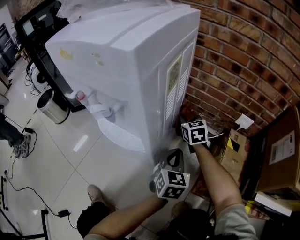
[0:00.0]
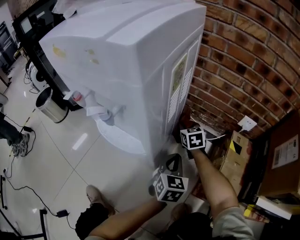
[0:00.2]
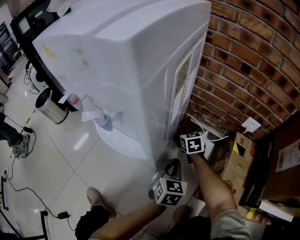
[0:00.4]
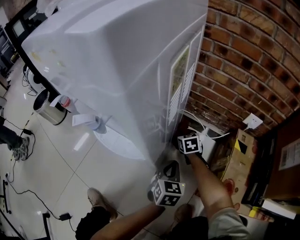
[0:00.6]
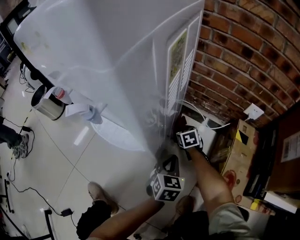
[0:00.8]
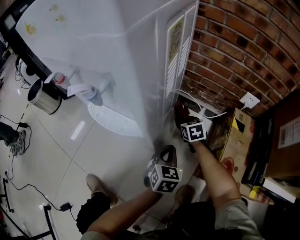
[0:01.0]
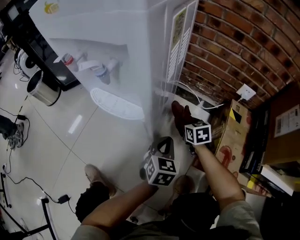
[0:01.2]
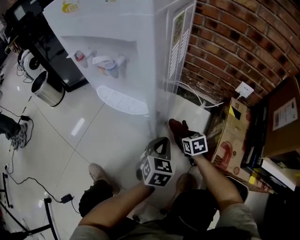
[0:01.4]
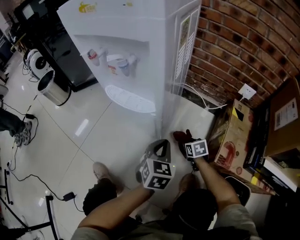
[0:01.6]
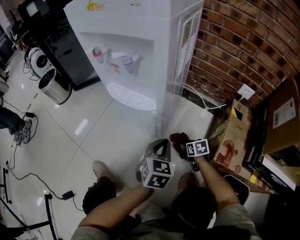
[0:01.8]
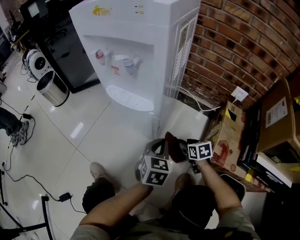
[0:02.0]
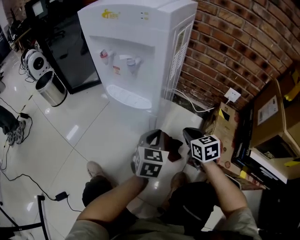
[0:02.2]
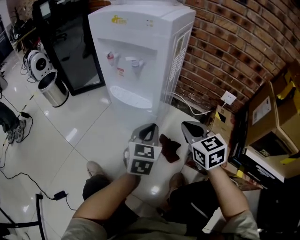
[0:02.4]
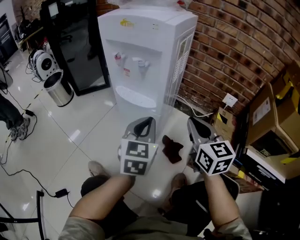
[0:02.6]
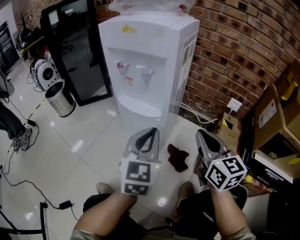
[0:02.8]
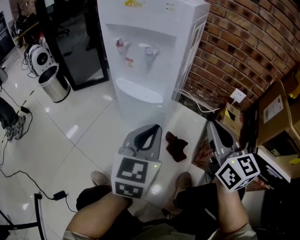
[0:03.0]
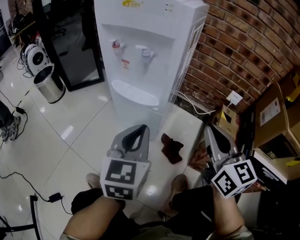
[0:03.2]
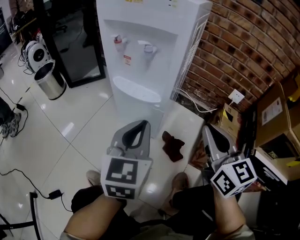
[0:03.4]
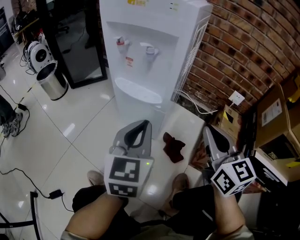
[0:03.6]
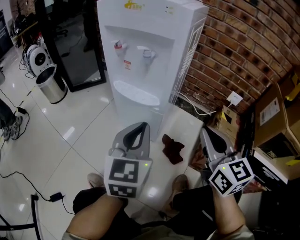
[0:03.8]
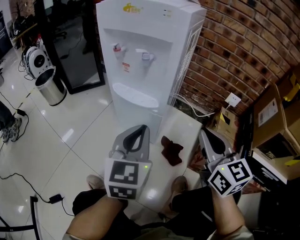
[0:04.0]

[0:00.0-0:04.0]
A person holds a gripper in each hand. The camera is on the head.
0.0 to 1.4 s: The left gripper goes about 10 cm backward, to the left and downward, while the right gripper shifts some 25 cm backward and downward, and turns by about 20 degrees.
1.4 to 2.6 s: The left gripper goes roughly 20 cm upward and to the left, and changes its angle by some 20 degrees, while the right gripper heads upward, covering some 35 cm, tilts its fingers roughly 40 degrees upward, and opens, then closes once more.
2.6 to 4.0 s: The grippers stay close to where they were, moving slightly.

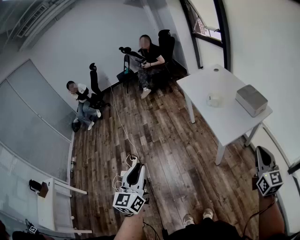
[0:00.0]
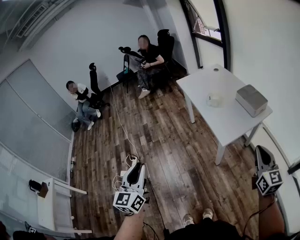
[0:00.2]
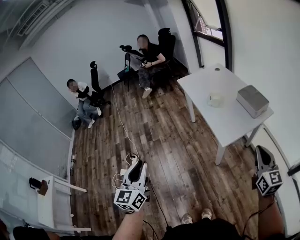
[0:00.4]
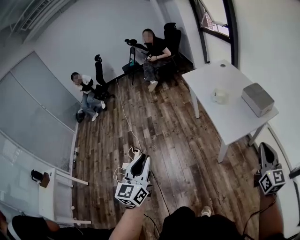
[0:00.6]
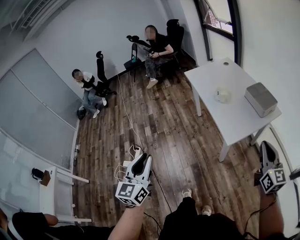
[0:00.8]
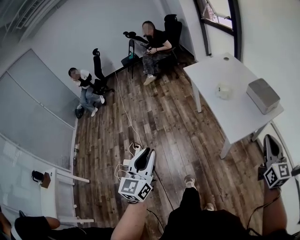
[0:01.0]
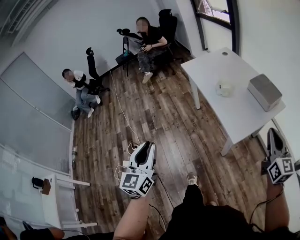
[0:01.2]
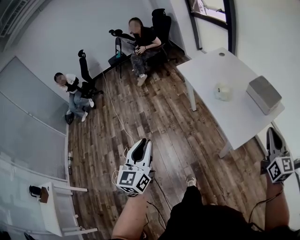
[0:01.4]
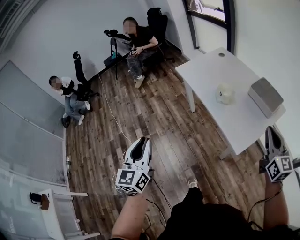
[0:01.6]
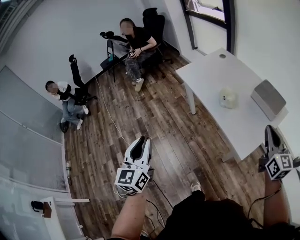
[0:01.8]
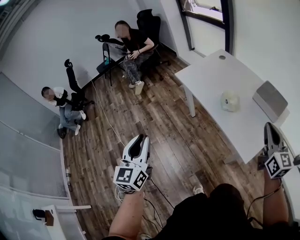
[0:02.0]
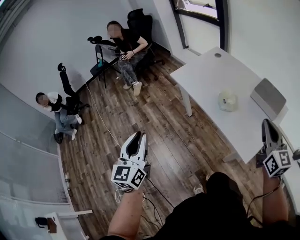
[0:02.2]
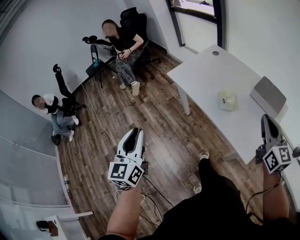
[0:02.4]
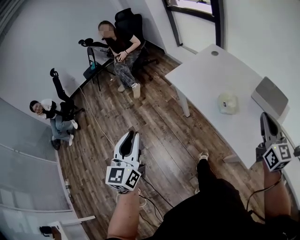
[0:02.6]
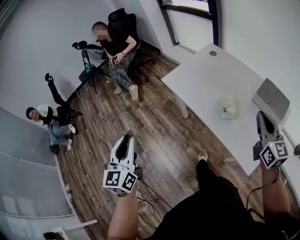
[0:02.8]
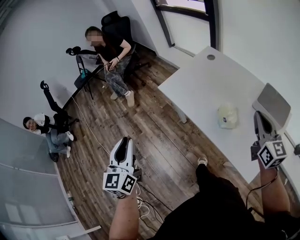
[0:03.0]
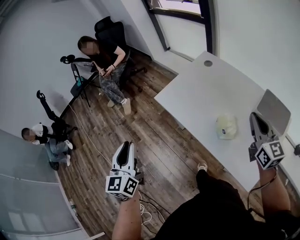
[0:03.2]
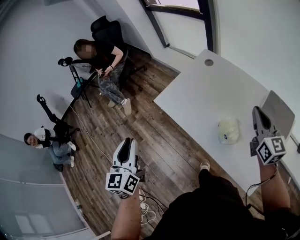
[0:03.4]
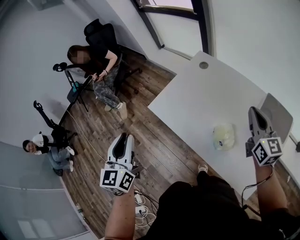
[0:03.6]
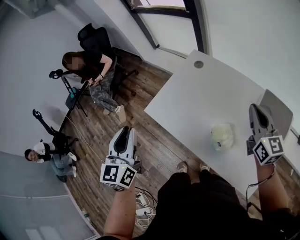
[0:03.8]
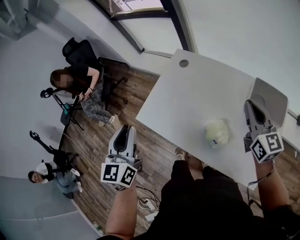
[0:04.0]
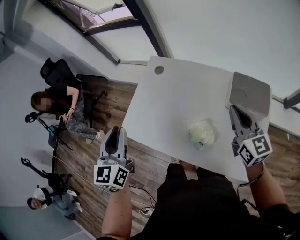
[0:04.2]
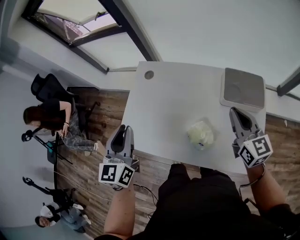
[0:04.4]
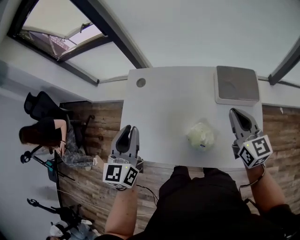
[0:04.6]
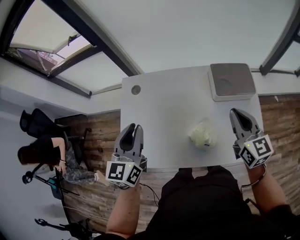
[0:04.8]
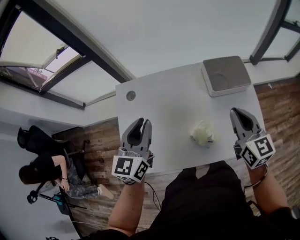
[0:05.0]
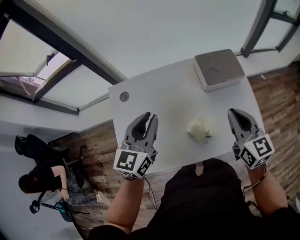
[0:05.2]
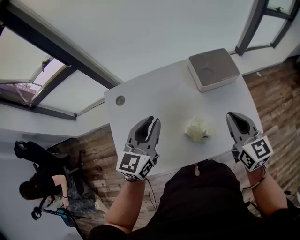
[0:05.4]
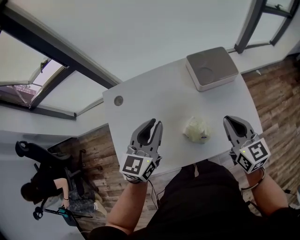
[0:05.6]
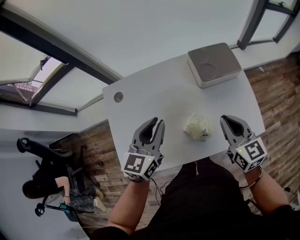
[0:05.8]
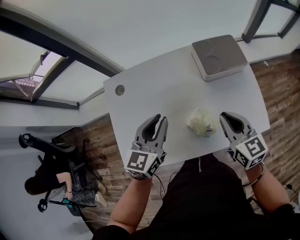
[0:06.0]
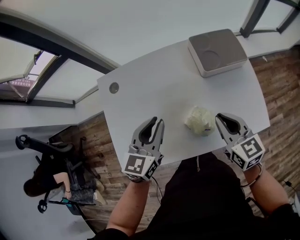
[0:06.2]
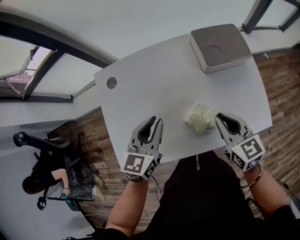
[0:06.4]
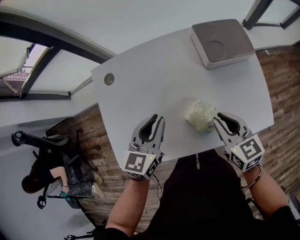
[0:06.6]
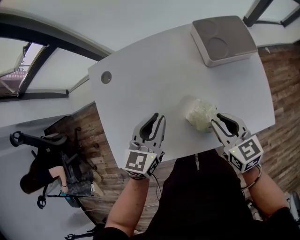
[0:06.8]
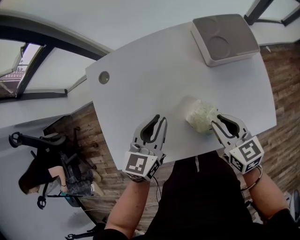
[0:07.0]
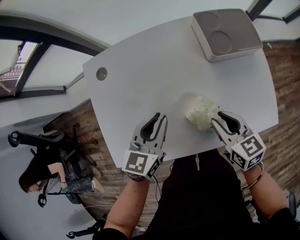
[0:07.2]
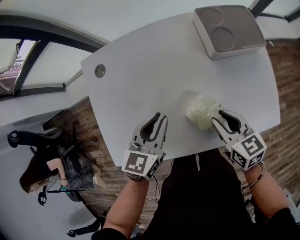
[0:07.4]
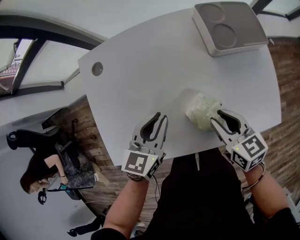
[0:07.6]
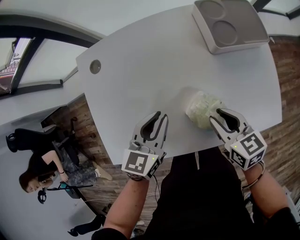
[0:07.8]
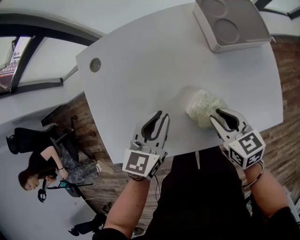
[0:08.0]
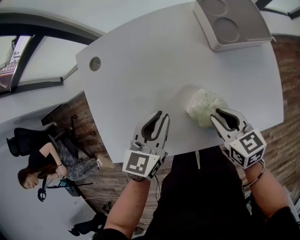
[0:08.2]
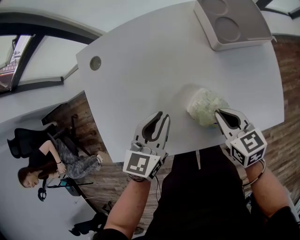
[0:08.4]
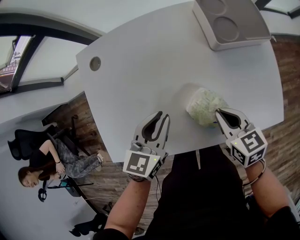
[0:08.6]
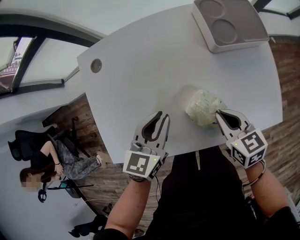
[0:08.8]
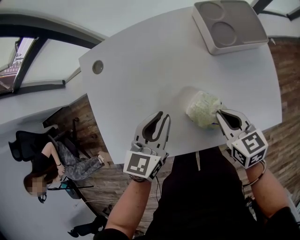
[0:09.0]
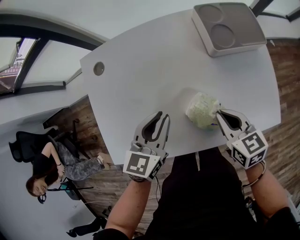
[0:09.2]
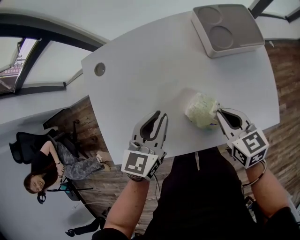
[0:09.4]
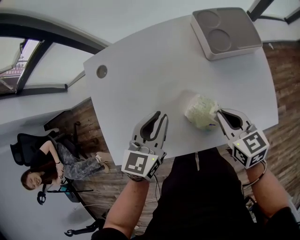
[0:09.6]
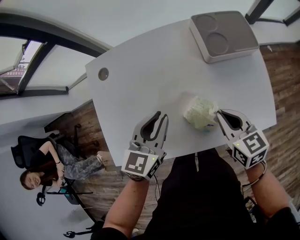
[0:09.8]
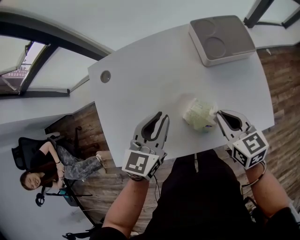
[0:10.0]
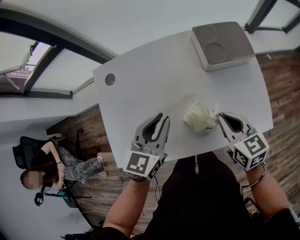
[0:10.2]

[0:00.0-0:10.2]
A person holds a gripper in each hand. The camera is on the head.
0.0 to 1.4 s: Both grippers move forward, some 20 cm.
1.4 to 3.0 s: The two grippers go approximately 35 cm forward.
3.0 to 4.4 s: The right gripper changes place by approximately 15 cm, and changes its angle by some 20 degrees; the left gripper moves approximately 40 cm, and turns by roughly 40 degrees.
4.4 to 5.8 s: The left gripper moves about 15 cm, and turns by some 40 degrees. Meanwhile the right gripper changes place by about 10 cm, and changes its angle by about 20 degrees.
5.8 to 7.2 s: Both grippers travel together downward, approximately 15 cm. The right gripper changes its angle by some 20 degrees, and opens its fingers.
7.2 to 8.8 s: The right gripper closes.
8.8 to 10.2 s: The grippers both shift upward by some 10 cm.

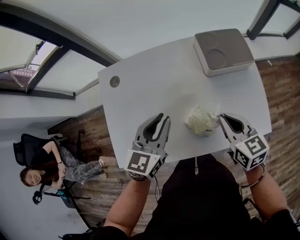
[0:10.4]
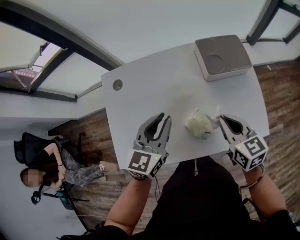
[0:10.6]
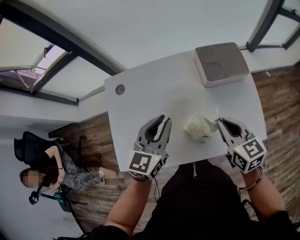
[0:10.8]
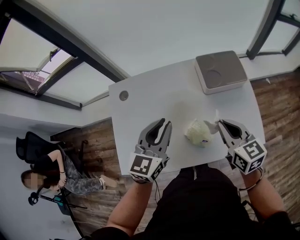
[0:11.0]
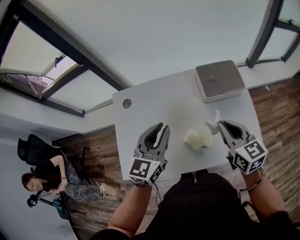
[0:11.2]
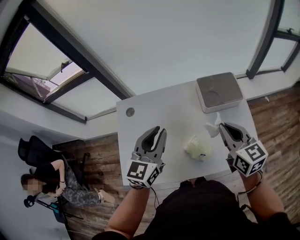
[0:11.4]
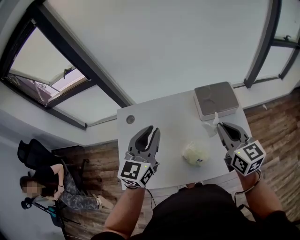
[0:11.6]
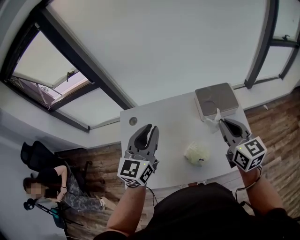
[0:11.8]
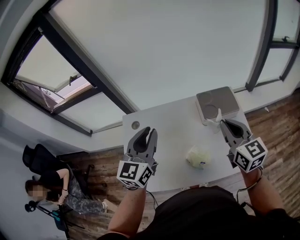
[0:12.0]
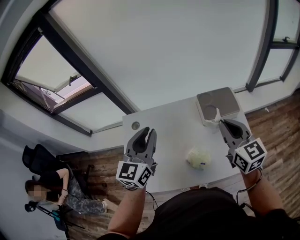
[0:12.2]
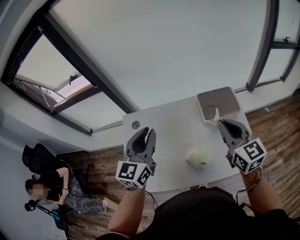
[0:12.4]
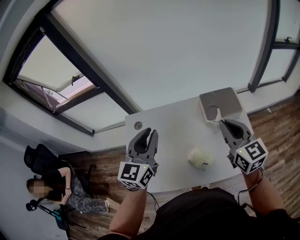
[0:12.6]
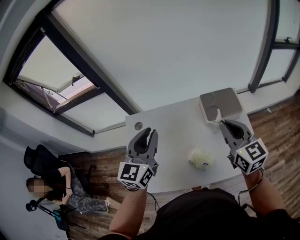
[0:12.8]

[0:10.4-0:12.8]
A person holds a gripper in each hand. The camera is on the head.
10.4 to 11.6 s: Both grippers move upward, approximately 15 cm. The right gripper rotates about 20 degrees.
11.6 to 12.8 s: The grippers make only small movements.

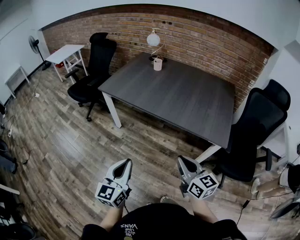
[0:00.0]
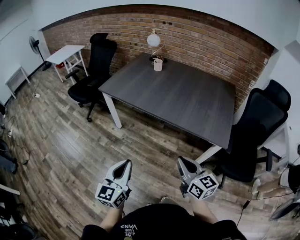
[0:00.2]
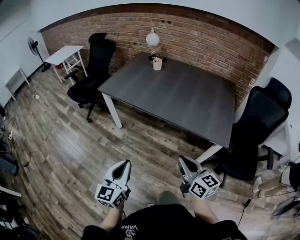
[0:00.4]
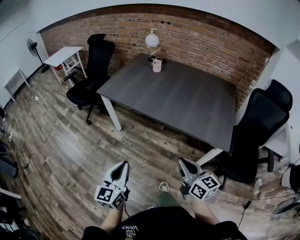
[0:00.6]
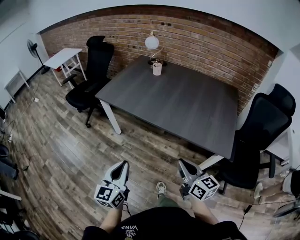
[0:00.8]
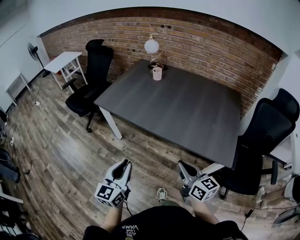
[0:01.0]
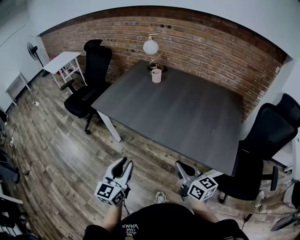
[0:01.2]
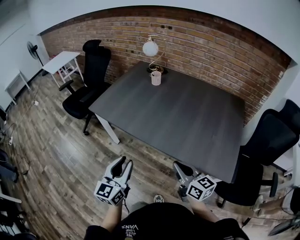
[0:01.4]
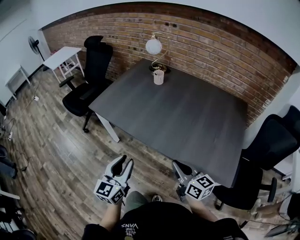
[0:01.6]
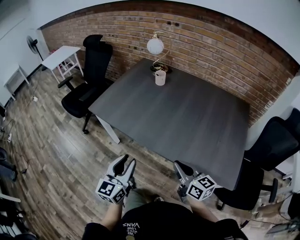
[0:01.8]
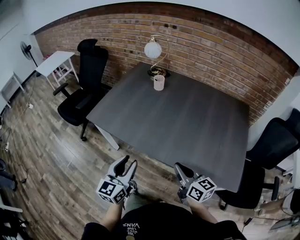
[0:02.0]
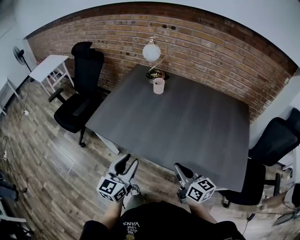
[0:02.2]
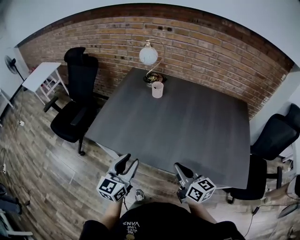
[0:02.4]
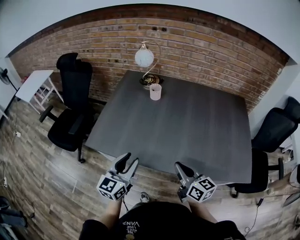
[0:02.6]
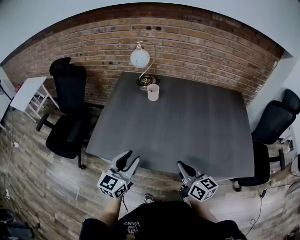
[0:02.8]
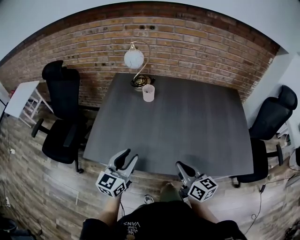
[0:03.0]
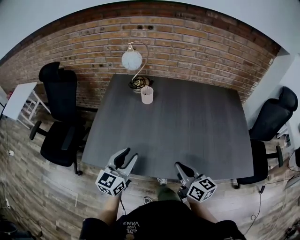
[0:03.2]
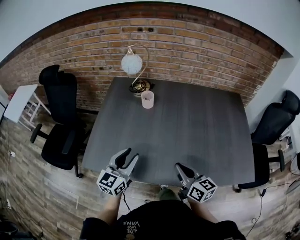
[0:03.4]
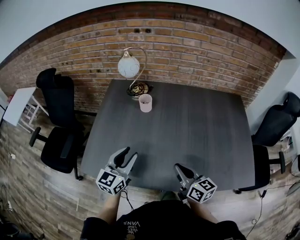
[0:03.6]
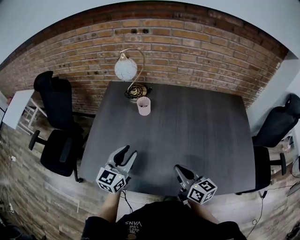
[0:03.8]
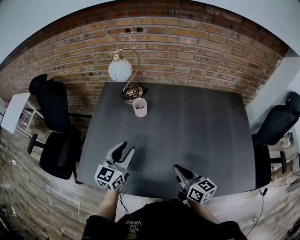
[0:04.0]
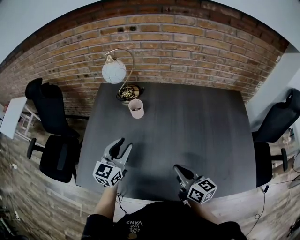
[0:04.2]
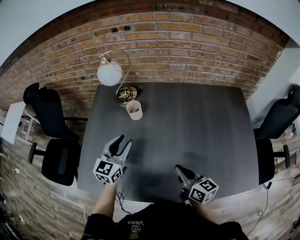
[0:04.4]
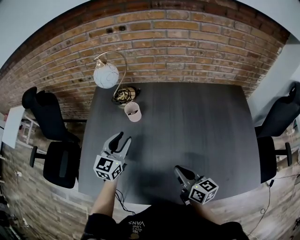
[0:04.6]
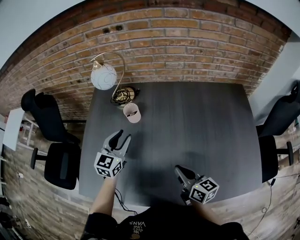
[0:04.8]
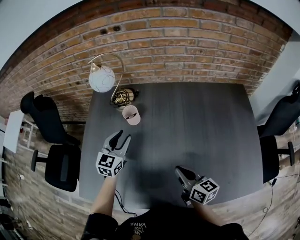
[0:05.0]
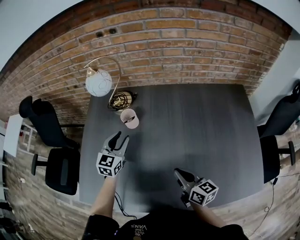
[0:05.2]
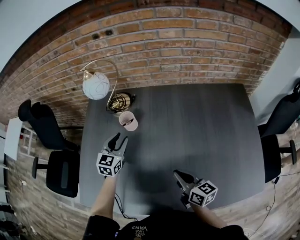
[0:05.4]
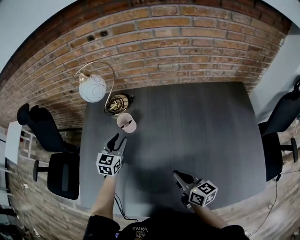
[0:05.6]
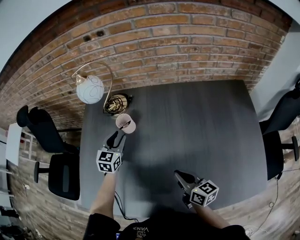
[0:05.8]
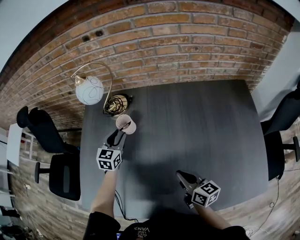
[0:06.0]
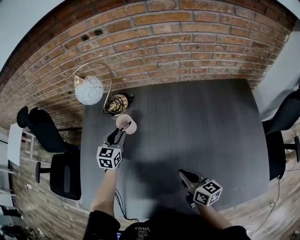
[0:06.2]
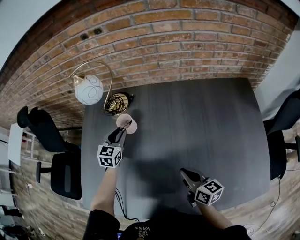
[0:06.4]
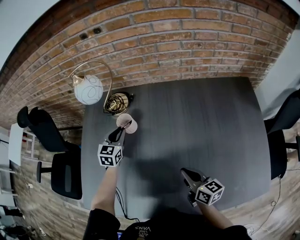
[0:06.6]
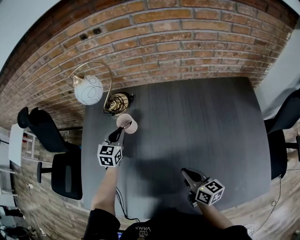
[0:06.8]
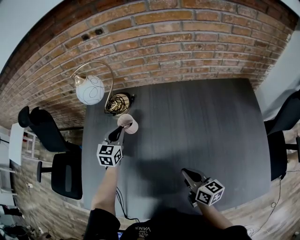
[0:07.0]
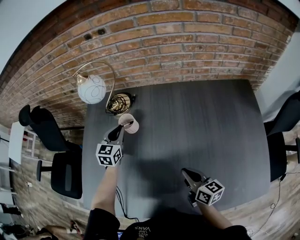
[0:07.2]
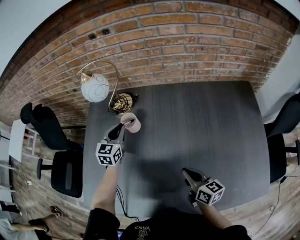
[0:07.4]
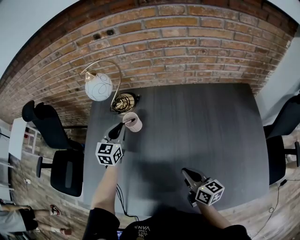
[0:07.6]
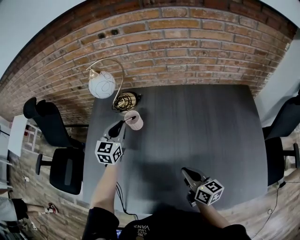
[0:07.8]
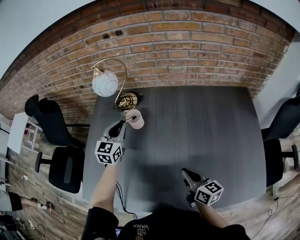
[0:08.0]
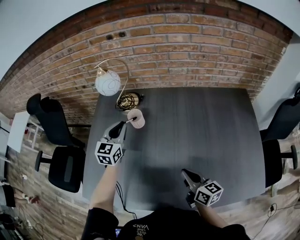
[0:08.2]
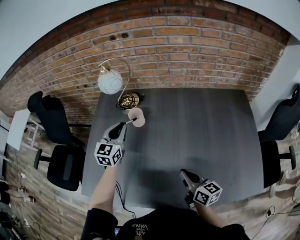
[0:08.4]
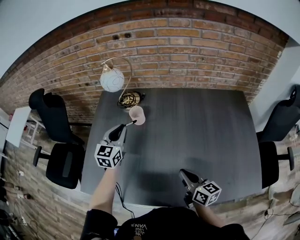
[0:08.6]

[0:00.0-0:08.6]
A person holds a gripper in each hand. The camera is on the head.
0.0 to 1.4 s: Both grippers move forward, approximately 25 cm.
1.4 to 2.8 s: The left gripper moves about 30 cm, and swivels roughly 30 degrees; the right gripper moves roughly 25 cm, and swivels some 20 degrees.
2.8 to 4.4 s: The right gripper heads forward, covering approximately 15 cm, while the left gripper heads forward, covering approximately 30 cm.
4.4 to 5.8 s: The left gripper moves forward and downward, approximately 20 cm. The right gripper heads forward and downward, covering roughly 10 cm.
5.8 to 7.2 s: There are only small adjustments of the grippers.
7.2 to 8.6 s: The right gripper heads backward, covering approximately 10 cm; the left gripper travels backward and upward by some 15 cm.
